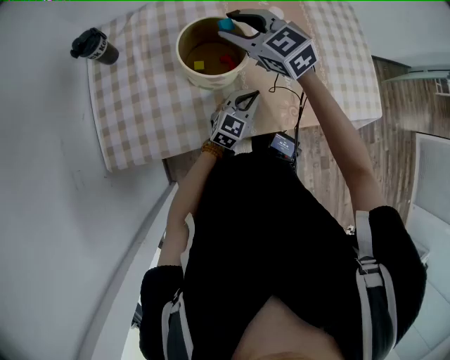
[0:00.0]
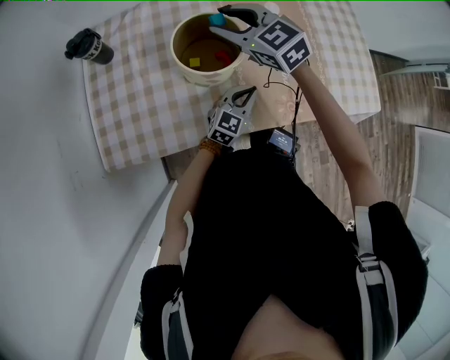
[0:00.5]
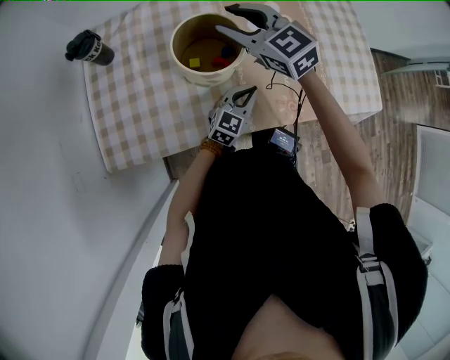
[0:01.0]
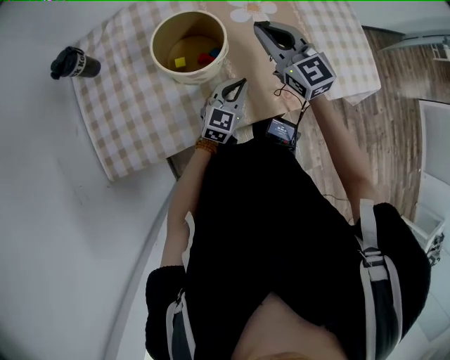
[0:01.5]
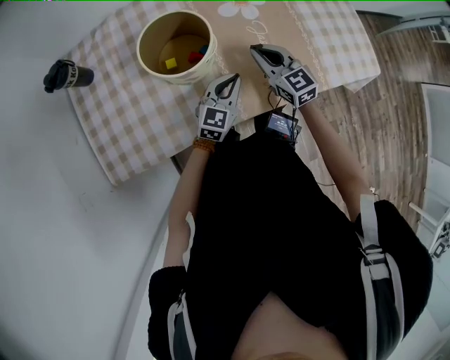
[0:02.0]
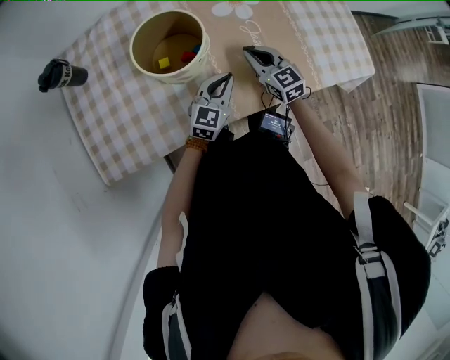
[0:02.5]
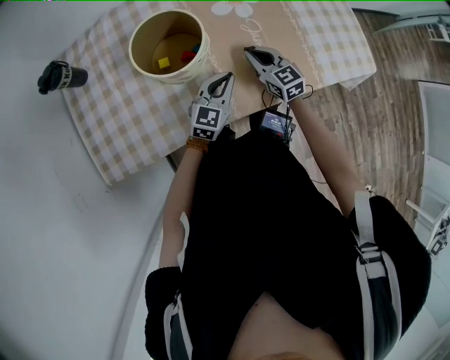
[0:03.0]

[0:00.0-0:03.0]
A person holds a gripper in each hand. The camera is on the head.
0:00.0 to 0:01.5: The right gripper shifts approximately 15 cm to the right, turns by roughly 20 degrees, and closes.
0:01.5 to 0:03.0: The right gripper shifts about 20 cm downward.

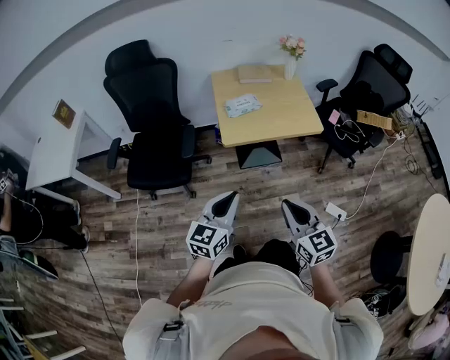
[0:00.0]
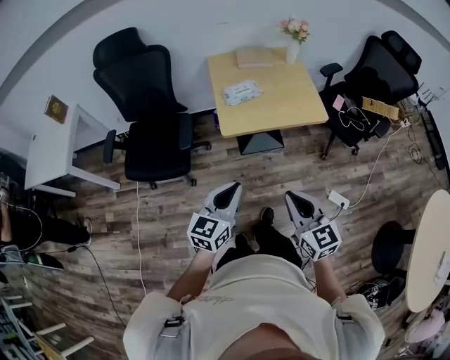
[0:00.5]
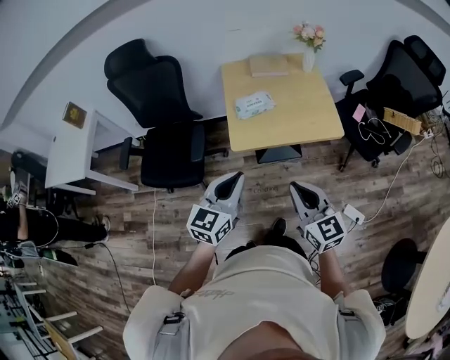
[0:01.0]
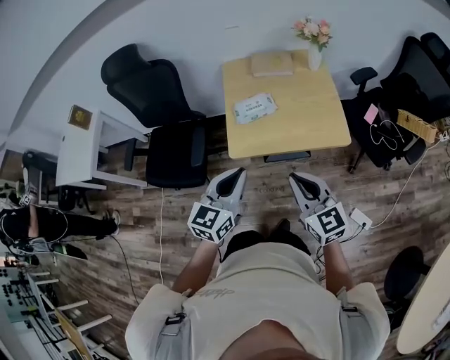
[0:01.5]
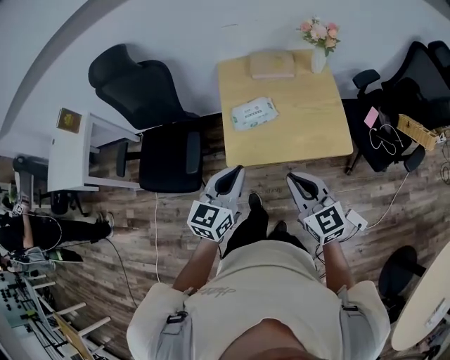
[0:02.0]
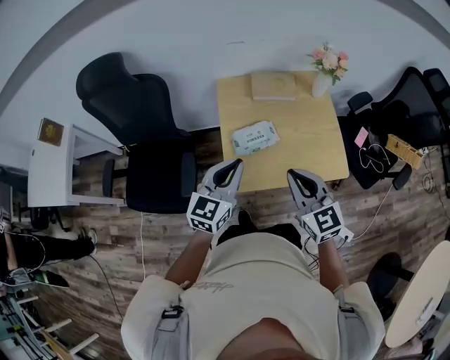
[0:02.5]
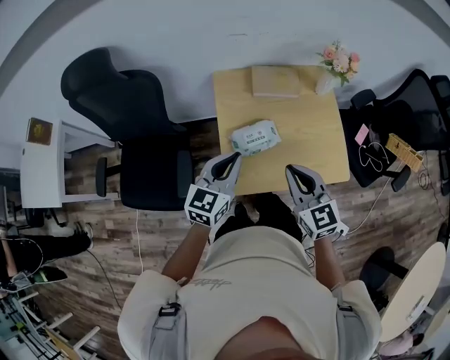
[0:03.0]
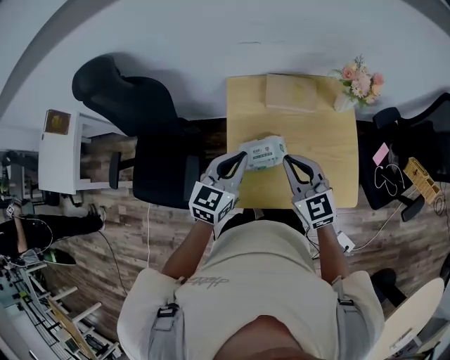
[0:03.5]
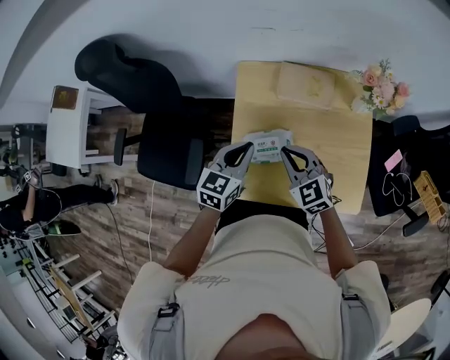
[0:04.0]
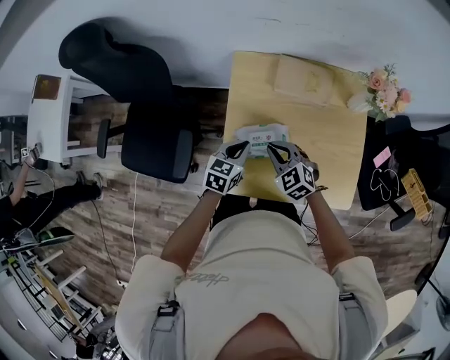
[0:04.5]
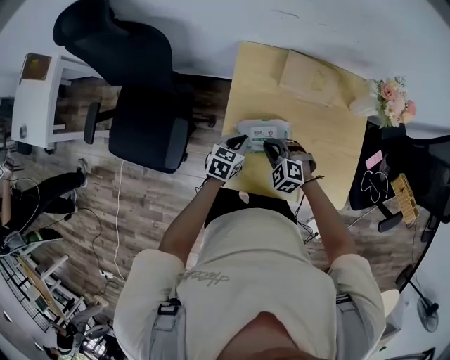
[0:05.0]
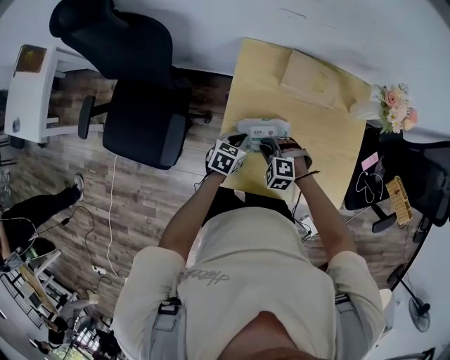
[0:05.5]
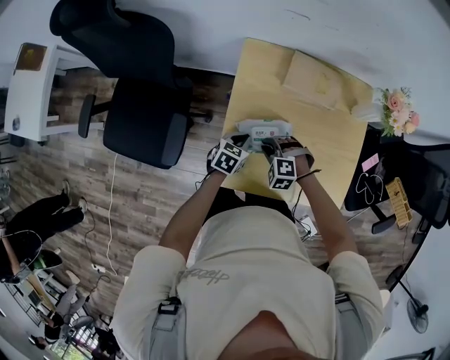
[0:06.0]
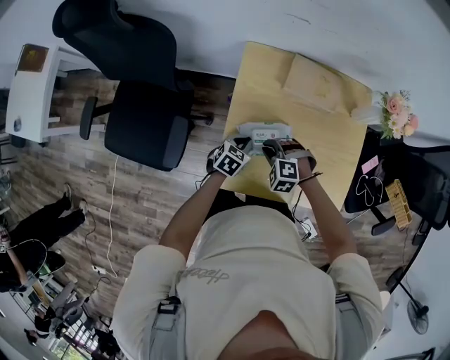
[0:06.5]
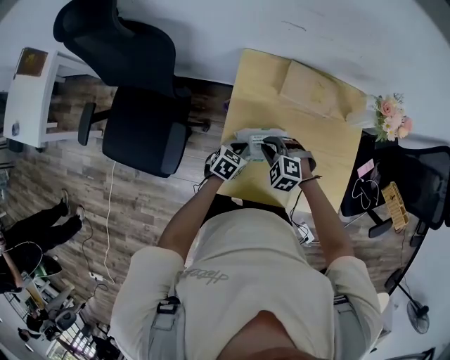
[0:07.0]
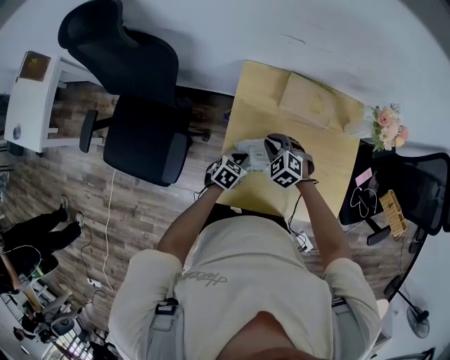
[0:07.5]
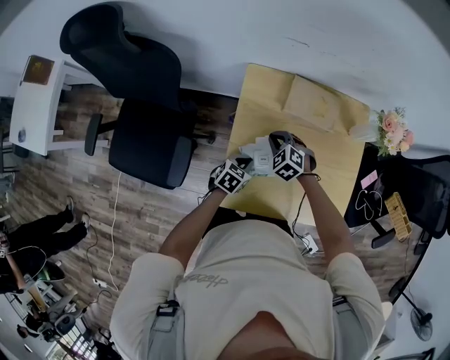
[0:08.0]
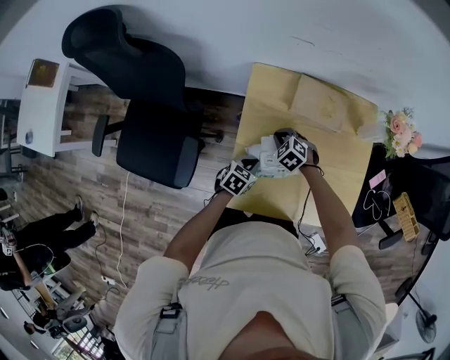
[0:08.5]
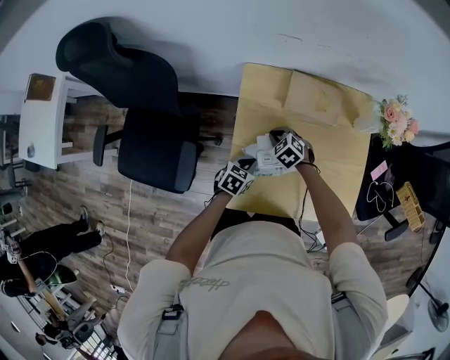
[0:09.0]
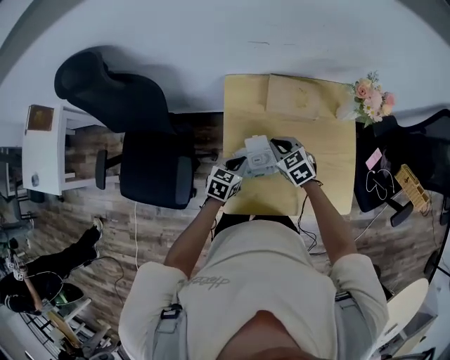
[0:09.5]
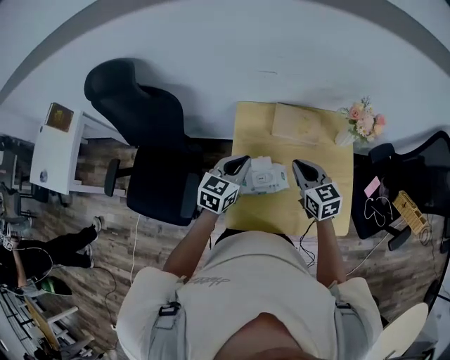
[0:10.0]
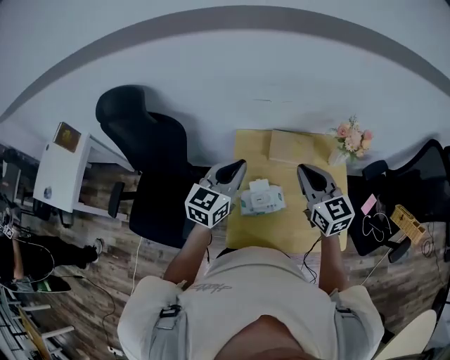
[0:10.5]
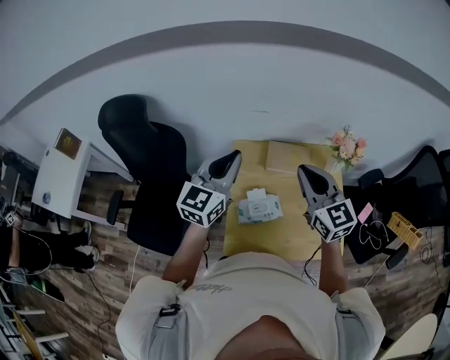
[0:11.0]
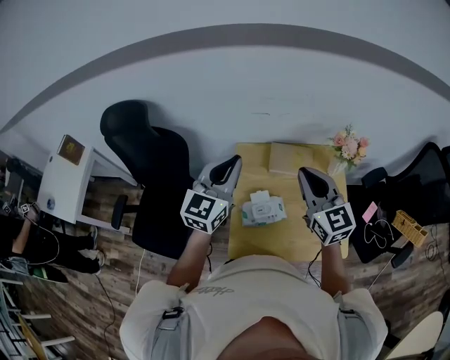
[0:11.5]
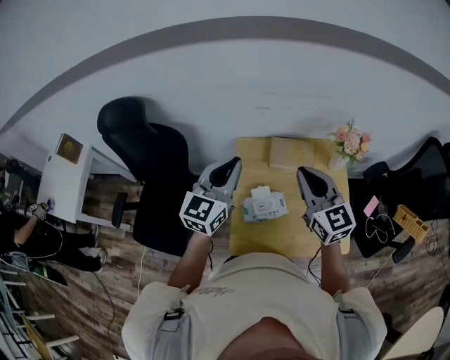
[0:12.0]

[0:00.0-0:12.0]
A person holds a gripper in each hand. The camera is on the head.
0:00.0 to 0:02.0: The grippers both shift forward by about 35 cm.
0:02.0 to 0:04.0: Both grippers move forward, some 30 cm. The right gripper changes its angle by about 20 degrees.
0:04.0 to 0:06.0: Both grippers travel together downward, about 20 cm. The right gripper tilts its fingers approximately 40 degrees downward. The left gripper swivels about 20 degrees.
0:06.0 to 0:08.0: The right gripper goes roughly 10 cm forward, and changes its angle by roughly 30 degrees.
0:08.0 to 0:10.0: The right gripper moves upward and to the right, some 25 cm, and tilts its fingers about 30 degrees upward, while the left gripper goes about 25 cm upward, and turns by approximately 30 degrees.
0:10.0 to 0:12.0: Both grippers move upward, about 20 cm. The left gripper turns by roughly 20 degrees. Meanwhile the right gripper changes its angle by about 20 degrees.

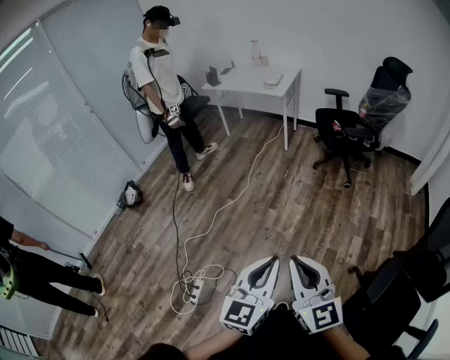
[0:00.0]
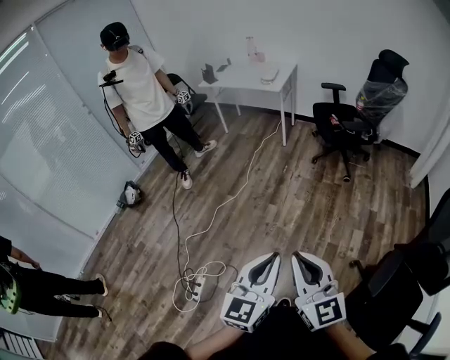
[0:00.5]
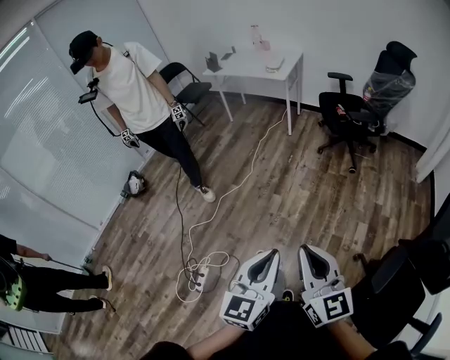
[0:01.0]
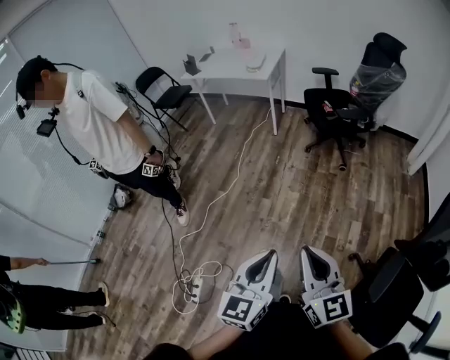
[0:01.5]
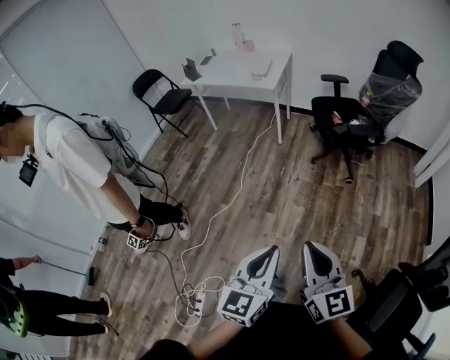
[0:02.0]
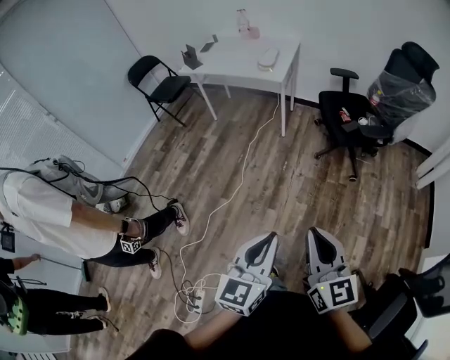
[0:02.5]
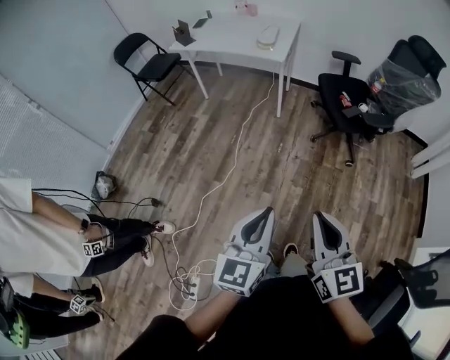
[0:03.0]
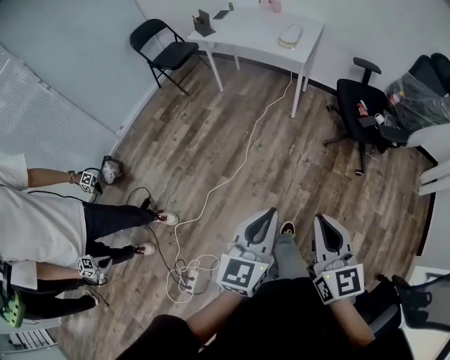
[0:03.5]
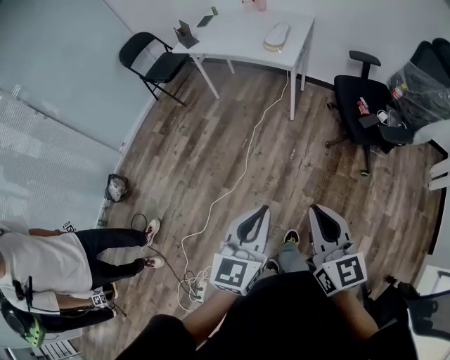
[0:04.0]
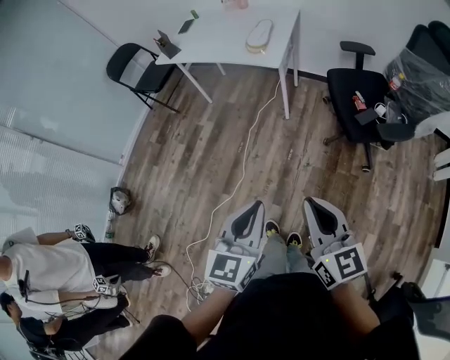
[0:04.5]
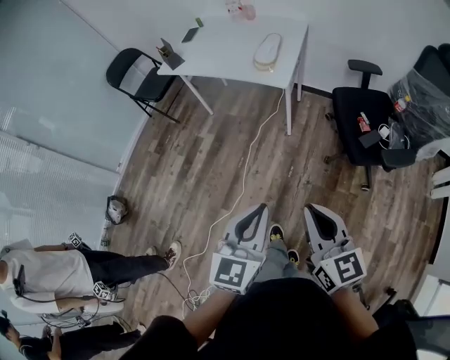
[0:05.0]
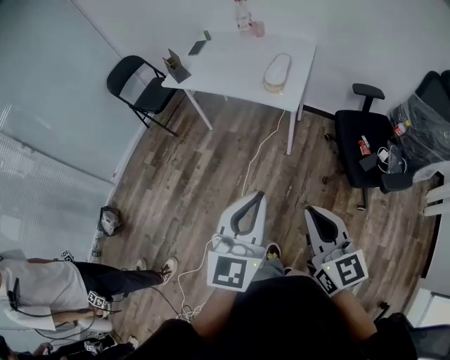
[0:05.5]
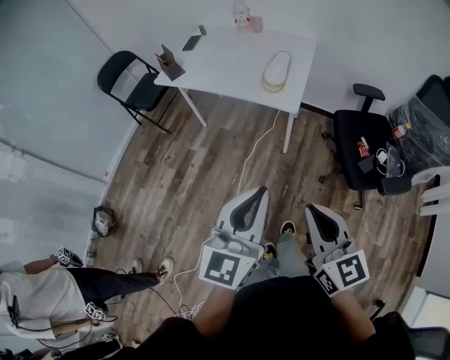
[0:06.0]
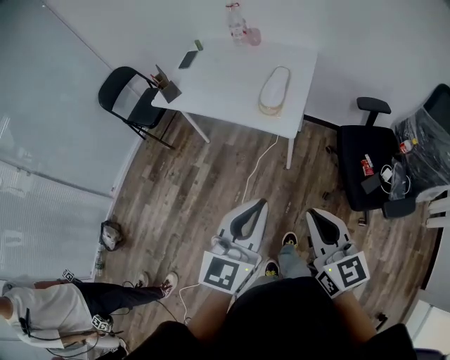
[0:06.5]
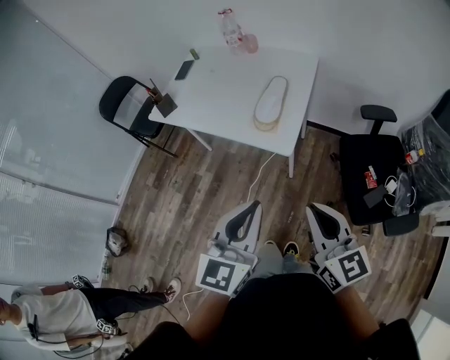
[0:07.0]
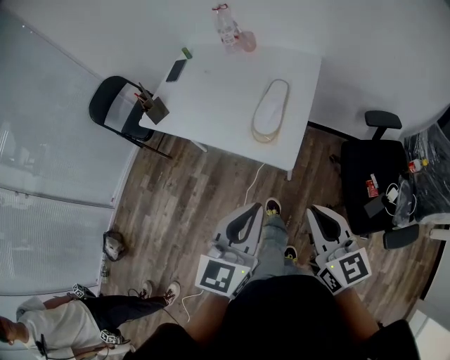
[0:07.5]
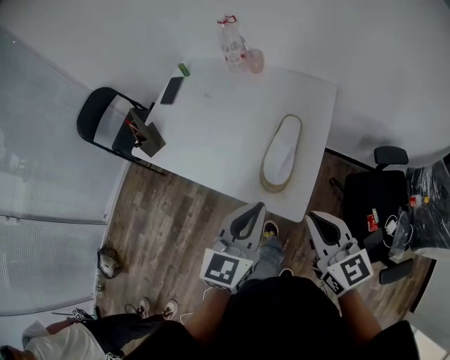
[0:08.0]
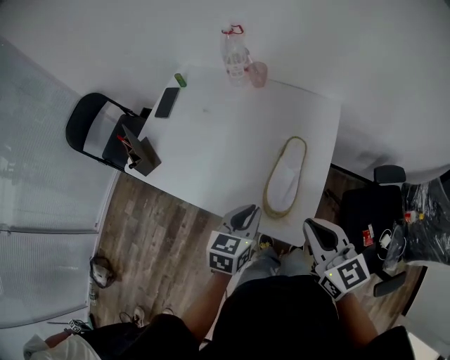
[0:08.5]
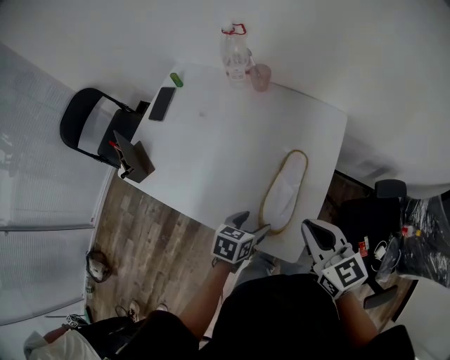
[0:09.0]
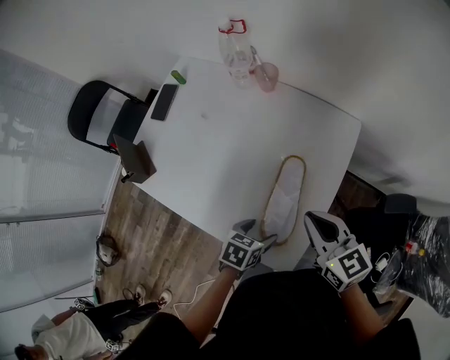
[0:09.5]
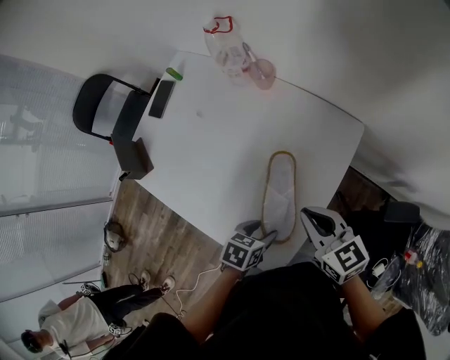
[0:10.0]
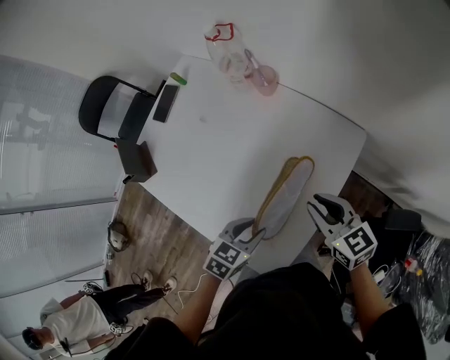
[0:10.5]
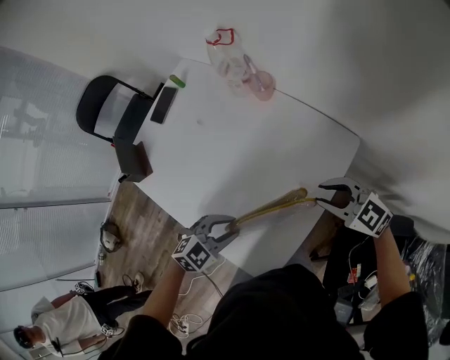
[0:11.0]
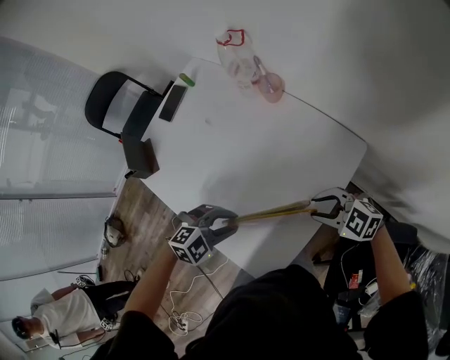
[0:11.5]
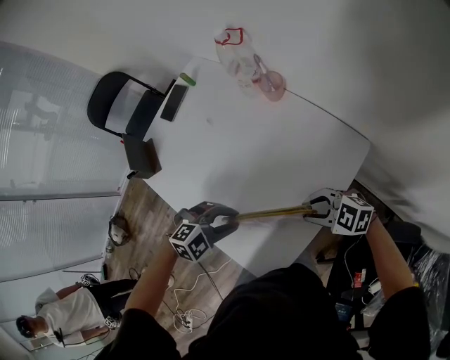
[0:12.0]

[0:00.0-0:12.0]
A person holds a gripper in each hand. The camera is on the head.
0:00.0 to 0:02.0: Both grippers move forward, approximately 25 cm.
0:02.0 to 0:04.0: Both grippers travel together forward, approximately 30 cm.
0:04.0 to 0:06.0: Both grippers travel together forward, roughly 30 cm.
0:06.0 to 0:08.0: The pair of grippers is taken forward, some 50 cm.
0:08.0 to 0:10.0: The left gripper shifts about 30 cm downward and forward, tilts its fingers approximately 40 degrees downward, and opens. Meanwhile the right gripper moves forward, some 30 cm, and swivels some 20 degrees.
0:10.0 to 0:12.0: The right gripper heads downward, covering about 10 cm, swivels about 60 degrees, and opens. The left gripper ends up roughly 10 cm from where it was, and rolls clockwise, seen from behind, by about 70 degrees.
